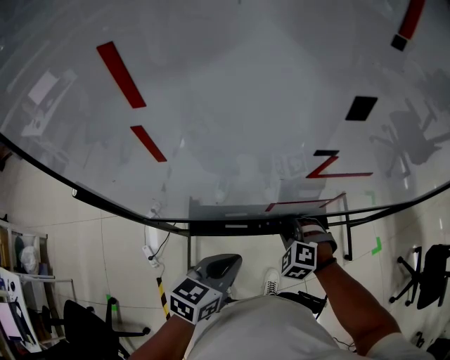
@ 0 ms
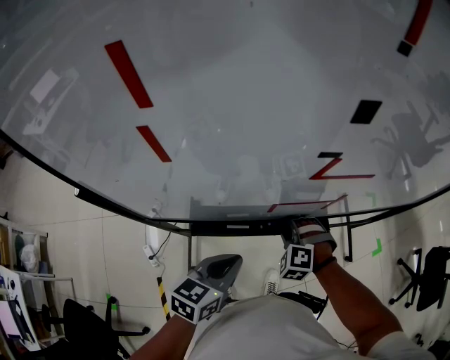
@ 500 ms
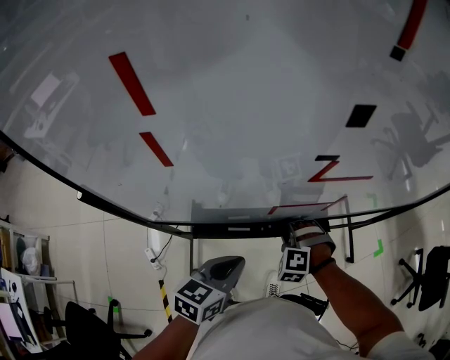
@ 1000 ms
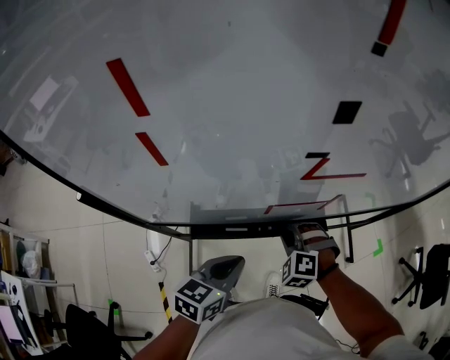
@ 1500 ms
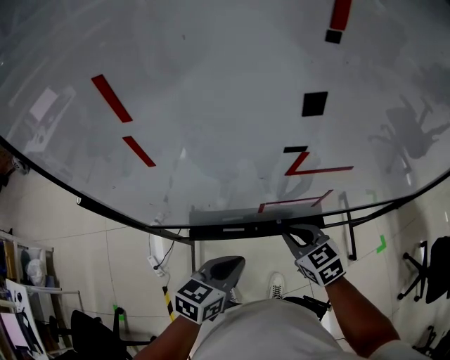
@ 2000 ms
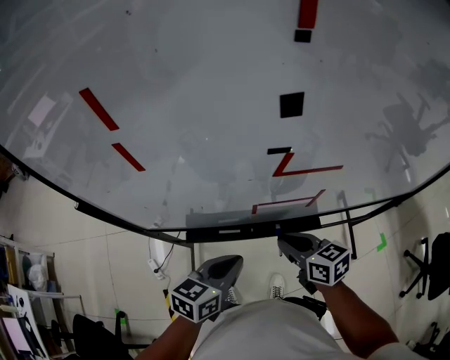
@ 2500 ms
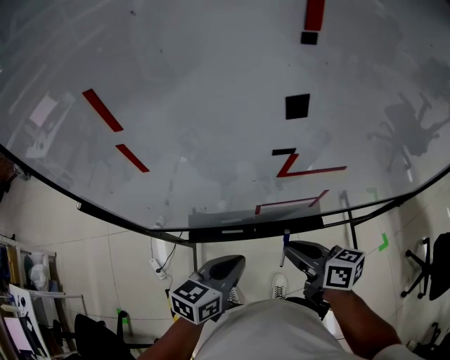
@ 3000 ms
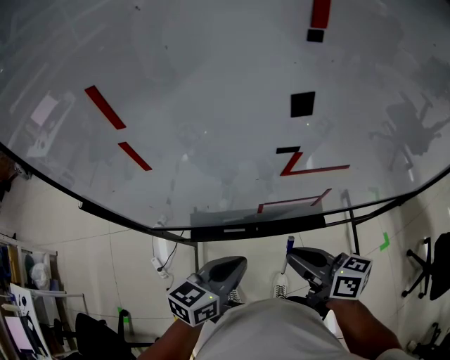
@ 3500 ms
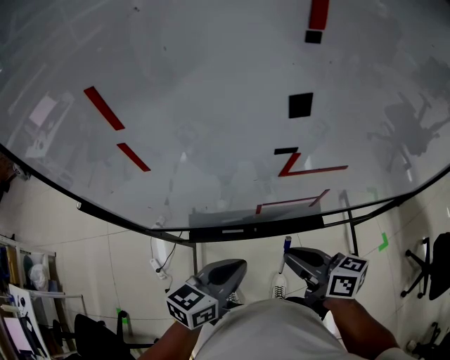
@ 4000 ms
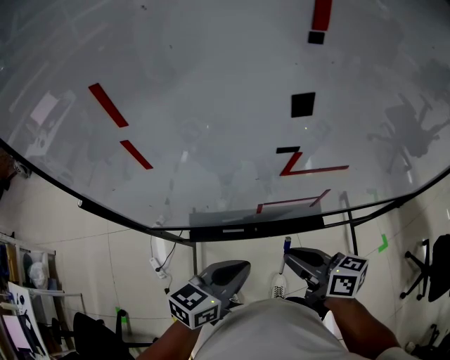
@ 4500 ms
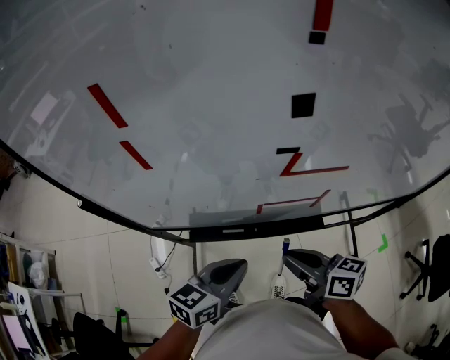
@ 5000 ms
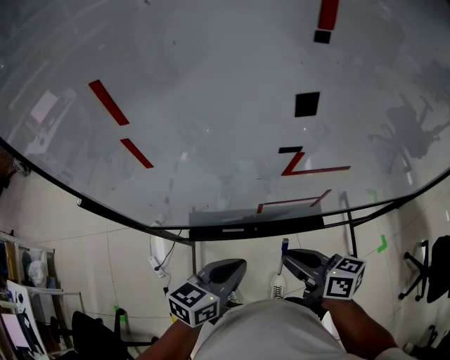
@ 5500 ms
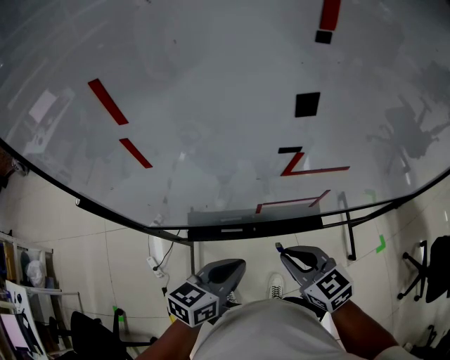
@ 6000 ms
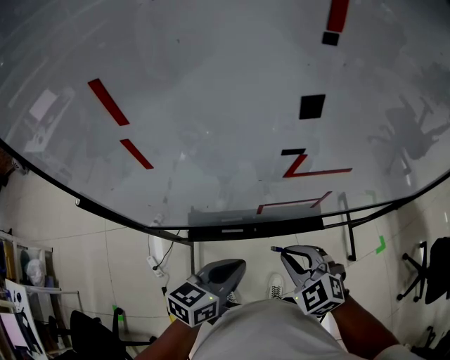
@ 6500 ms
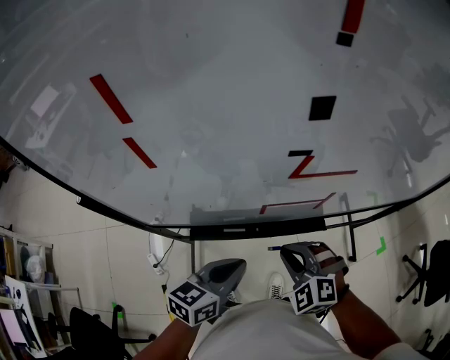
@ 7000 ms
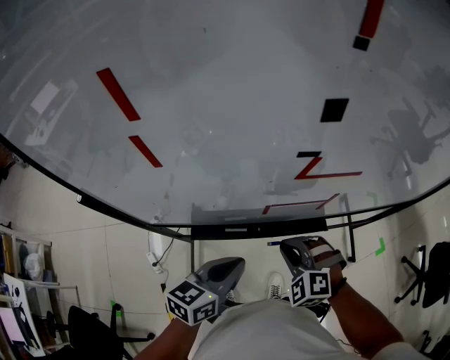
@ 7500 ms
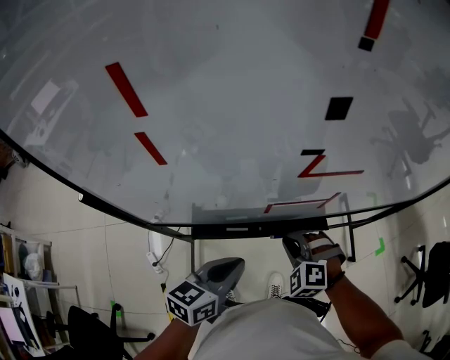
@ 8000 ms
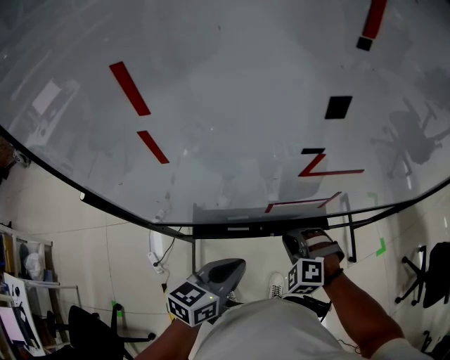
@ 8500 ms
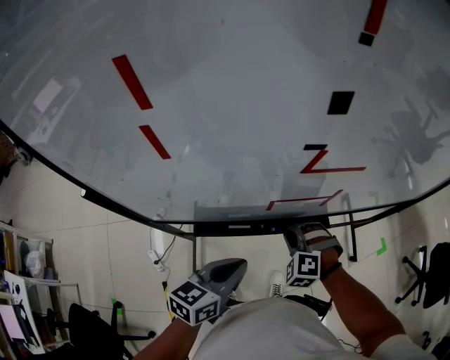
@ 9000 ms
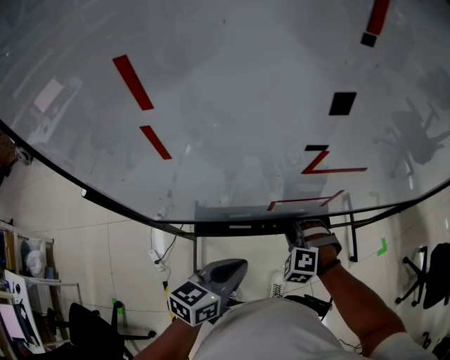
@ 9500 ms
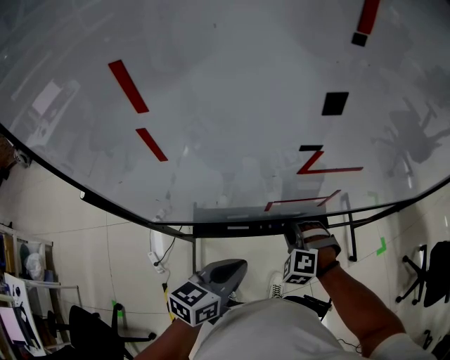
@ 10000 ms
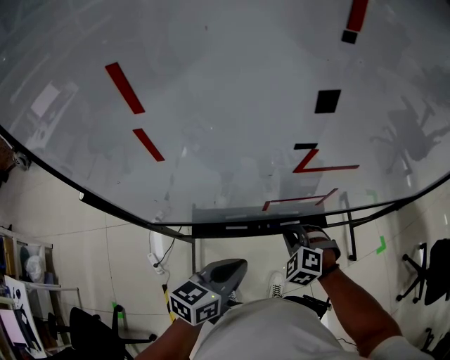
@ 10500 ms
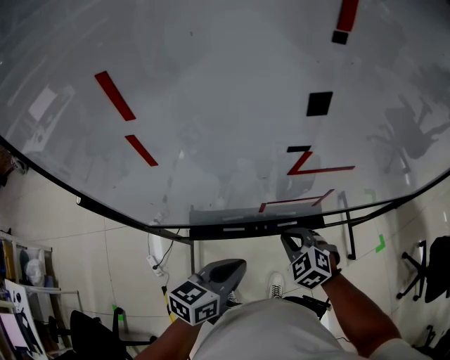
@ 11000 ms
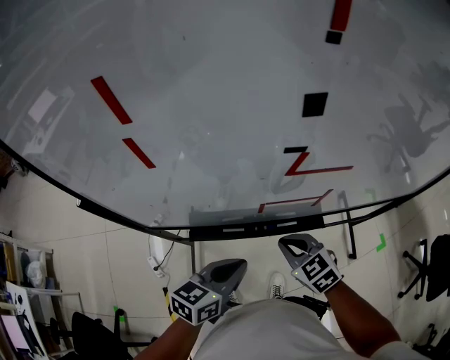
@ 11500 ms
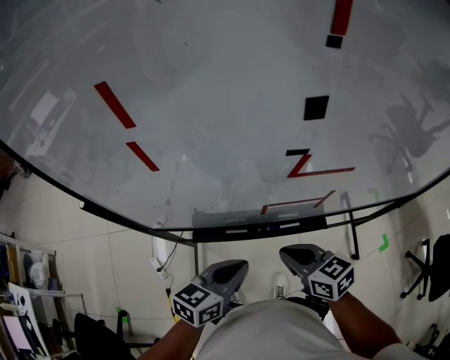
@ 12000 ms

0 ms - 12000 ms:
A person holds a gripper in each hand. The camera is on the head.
0 ms - 2000 ms: The right gripper travels upward by about 10 cm, and rolls clockwise, seen from behind, by about 50 degrees.
2000 ms - 4000 ms: The right gripper heads upward and backward, covering roughly 10 cm, and swivels some 50 degrees.
4000 ms - 6000 ms: The right gripper turns by approximately 40 degrees.
6000 ms - 8000 ms: The right gripper moves downward, about 10 cm, and twists roughly 50 degrees counterclockwise, seen from behind.
8000 ms - 10000 ms: The grippers move only a little.
10000 ms - 12000 ms: The right gripper moves upward and backward, approximately 10 cm, and rotates around the line of its fingers by approximately 70 degrees, clockwise from behind.

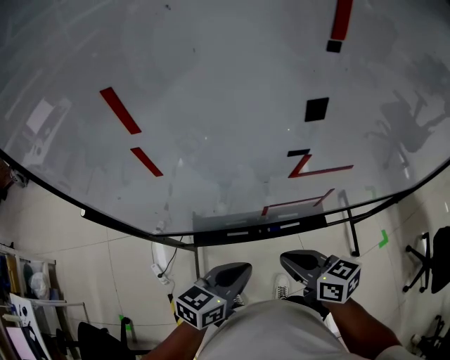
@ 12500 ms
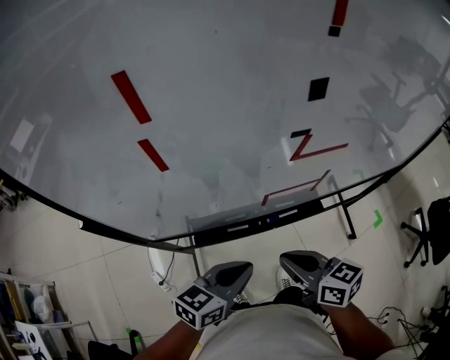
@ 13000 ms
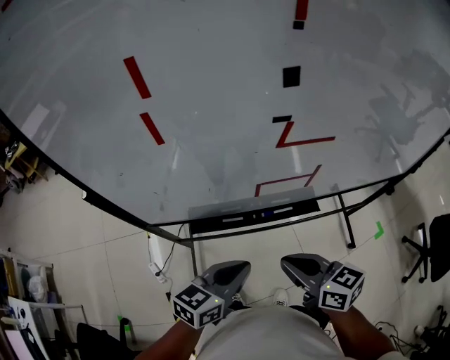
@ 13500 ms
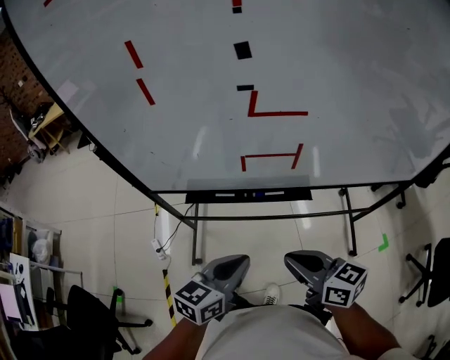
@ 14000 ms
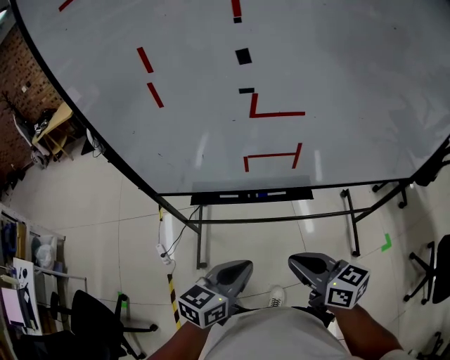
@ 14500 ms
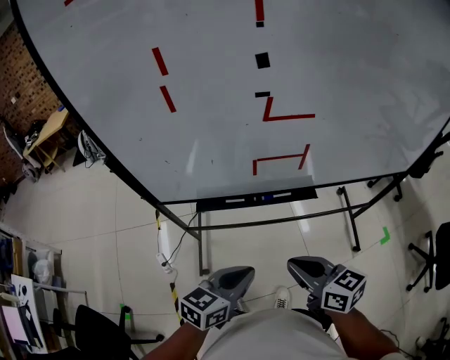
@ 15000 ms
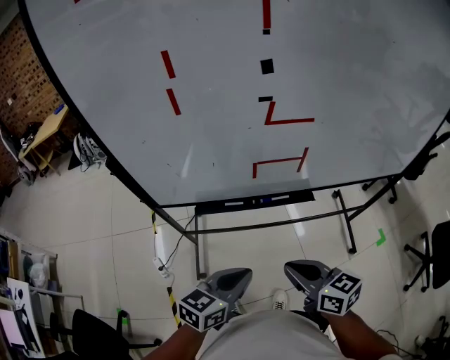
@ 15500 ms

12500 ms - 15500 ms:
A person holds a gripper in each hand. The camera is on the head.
12500 ms - 14000 ms: Both grippers travel together backward and to the right, about 15 cm.
14000 ms - 15500 ms: The grippers both shift to the left by roughly 5 cm.

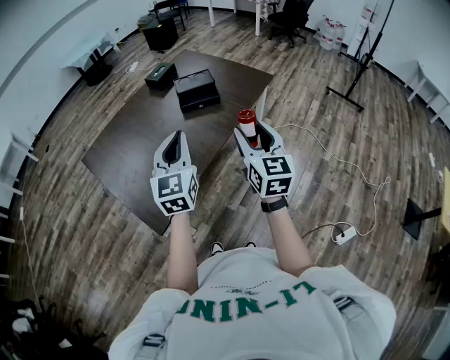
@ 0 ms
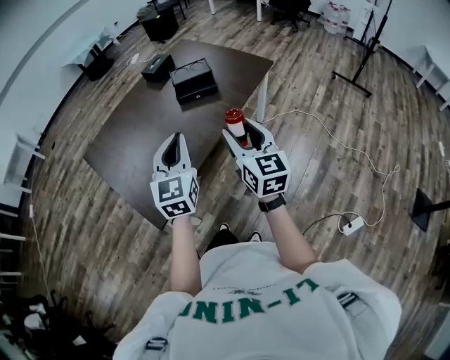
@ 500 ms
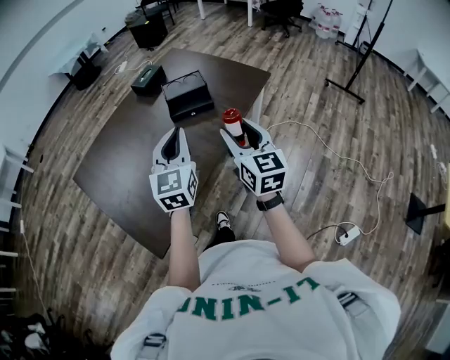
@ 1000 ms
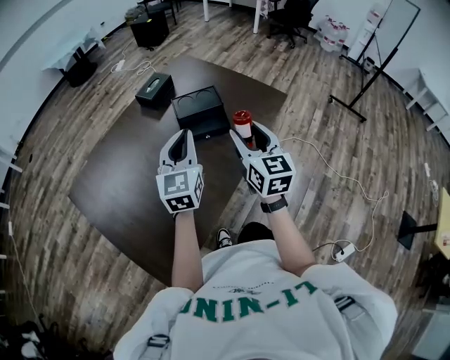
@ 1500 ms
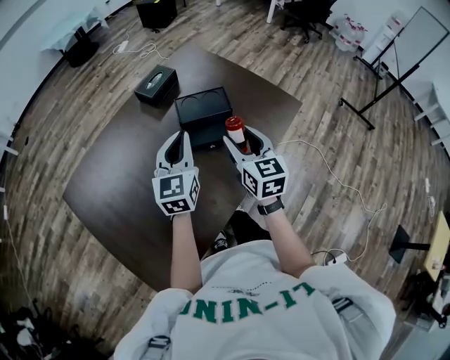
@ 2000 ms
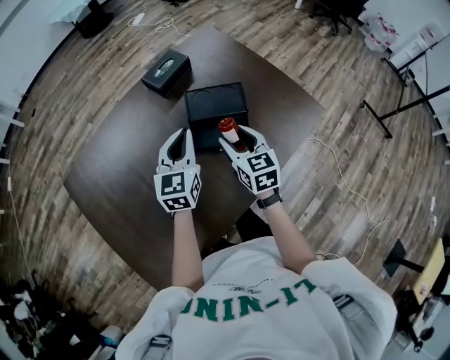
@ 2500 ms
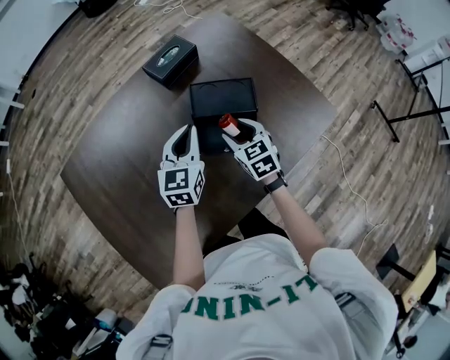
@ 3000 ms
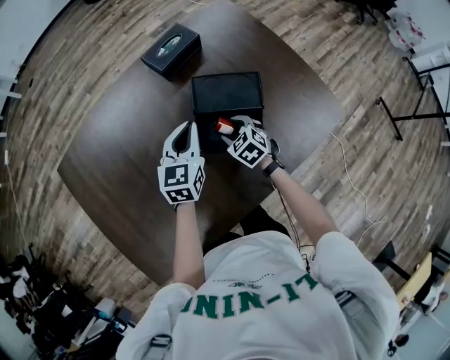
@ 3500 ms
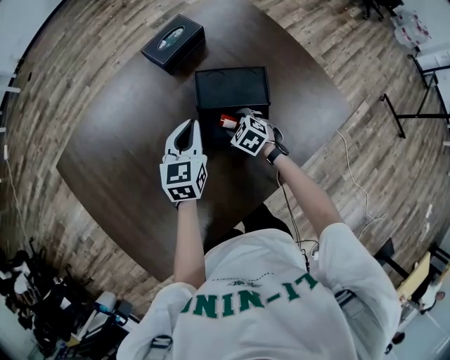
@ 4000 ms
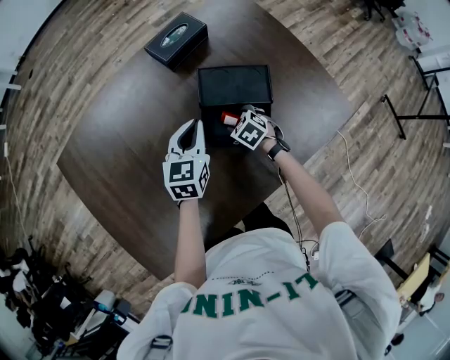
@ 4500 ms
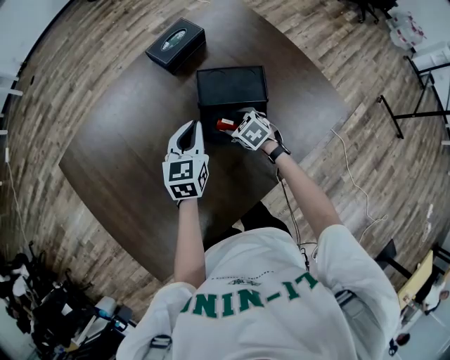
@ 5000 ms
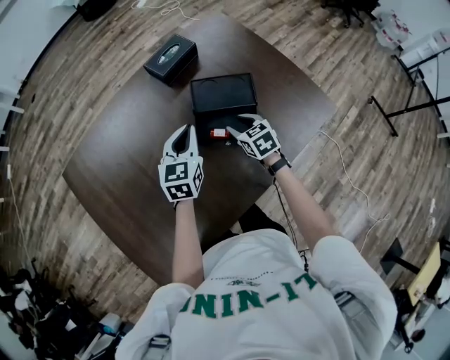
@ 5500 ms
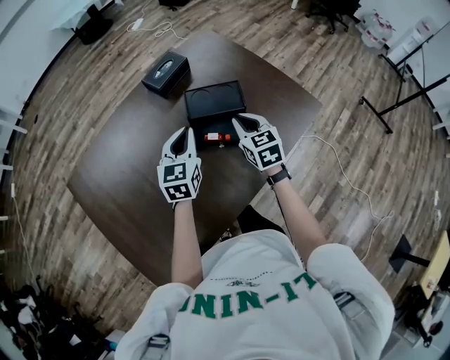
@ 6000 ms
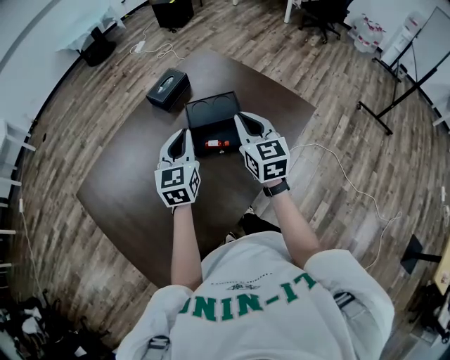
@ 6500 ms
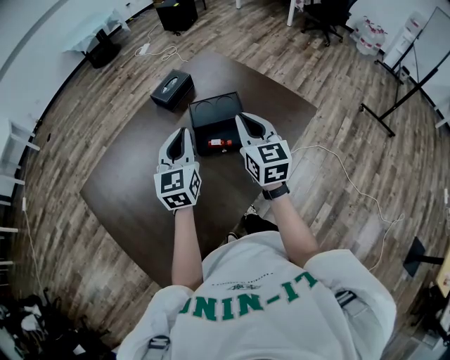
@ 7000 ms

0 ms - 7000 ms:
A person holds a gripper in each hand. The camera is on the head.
0 ms - 2000 ms: The two grippers travel together, forward, some 40 cm.
2000 ms - 3500 ms: The left gripper is displaced forward and downward by some 25 cm; the right gripper goes approximately 35 cm downward and forward, and tilts its fingers roughly 40 degrees downward.
5000 ms - 7000 ms: The right gripper heads upward, covering some 35 cm, points its fingers about 50 degrees further upward, and closes up. The left gripper travels upward and backward by roughly 25 cm, and swivels roughly 20 degrees.

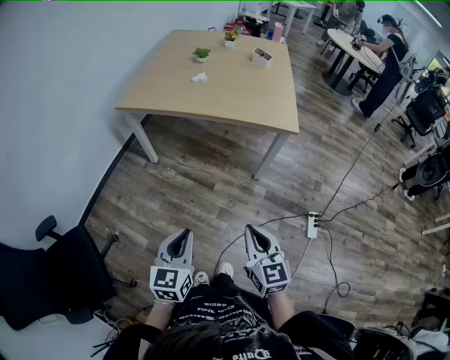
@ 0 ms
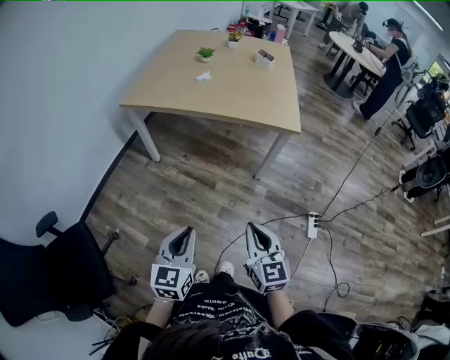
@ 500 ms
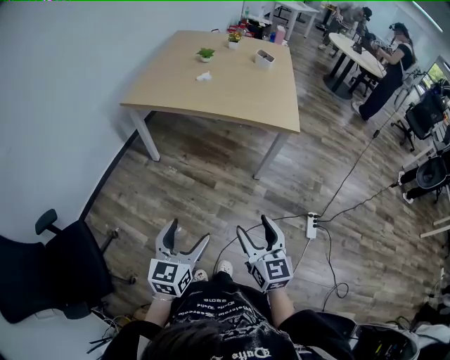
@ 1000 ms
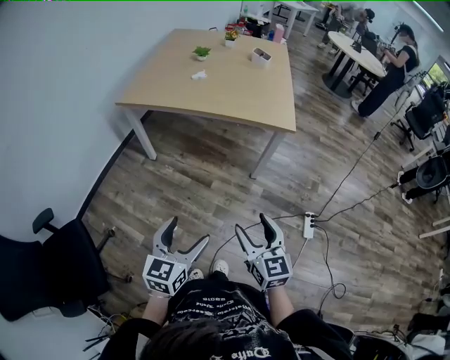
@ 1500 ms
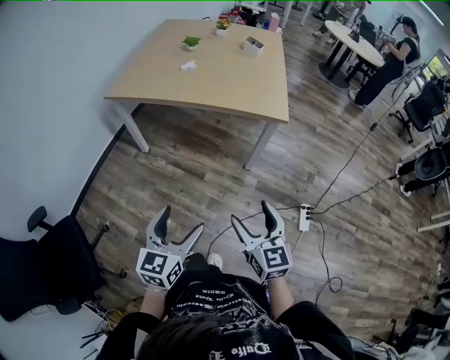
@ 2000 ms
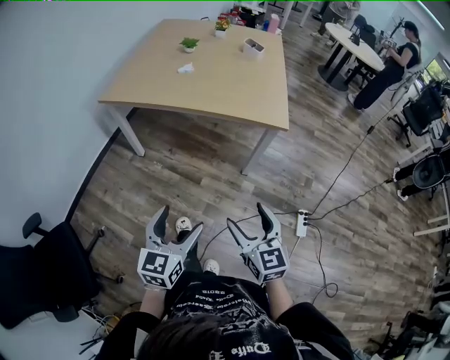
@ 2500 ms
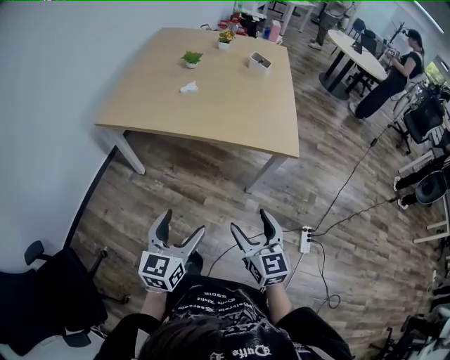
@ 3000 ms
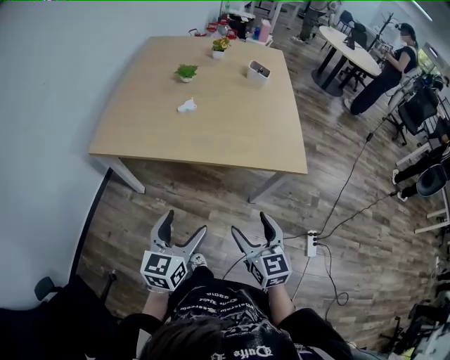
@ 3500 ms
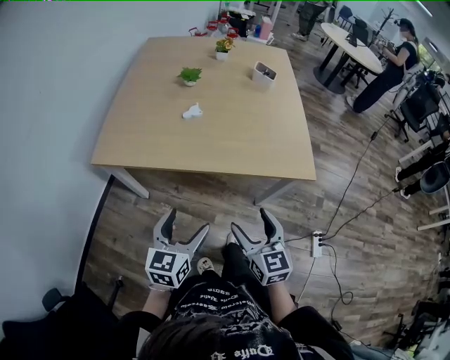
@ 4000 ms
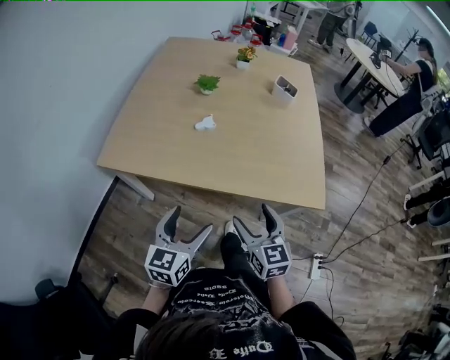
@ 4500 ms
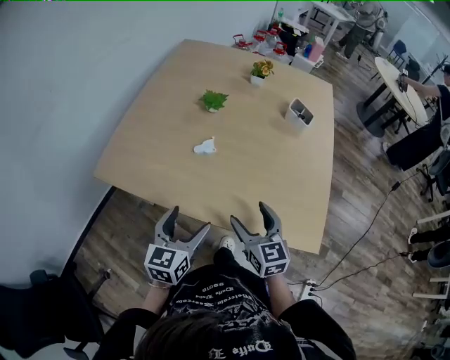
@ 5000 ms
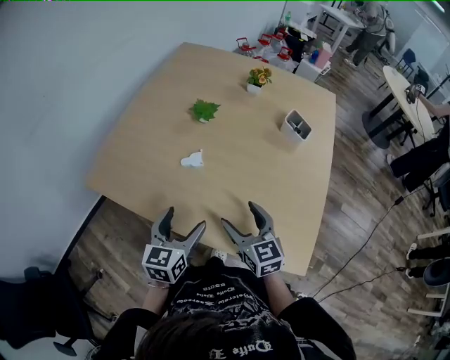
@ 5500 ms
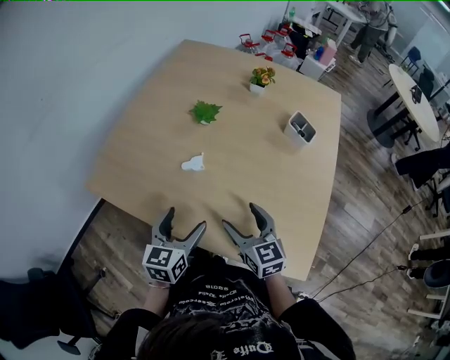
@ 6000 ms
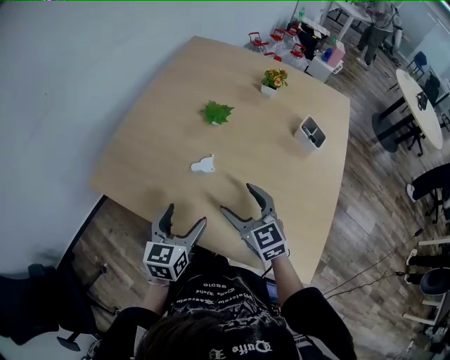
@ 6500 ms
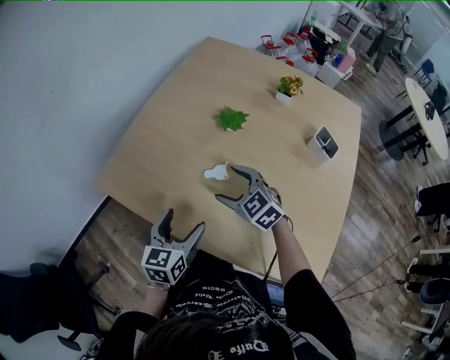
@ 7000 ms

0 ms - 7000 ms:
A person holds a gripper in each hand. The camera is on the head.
0 ms - 2000 ms: Both grippers travel together to the right, about 5 cm. The left gripper opens up. The right gripper opens.
2000 ms - 3500 ms: Both grippers move forward, about 30 cm.
3500 ms - 5000 ms: Both grippers travel together forward, roughly 30 cm.
5000 ms - 7000 ms: The right gripper goes approximately 25 cm forward, and changes its angle by about 50 degrees; the left gripper heads forward, covering approximately 10 cm.
